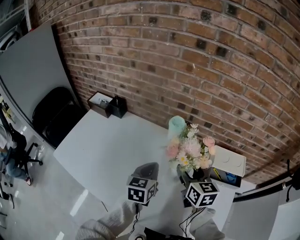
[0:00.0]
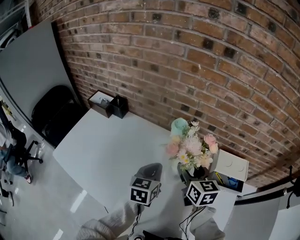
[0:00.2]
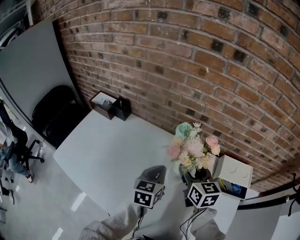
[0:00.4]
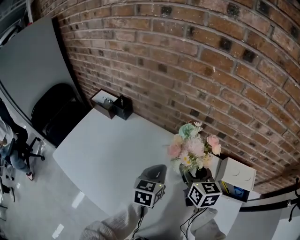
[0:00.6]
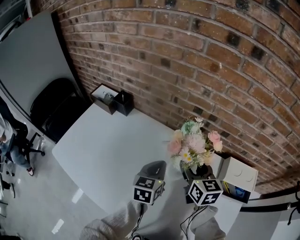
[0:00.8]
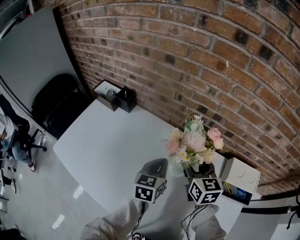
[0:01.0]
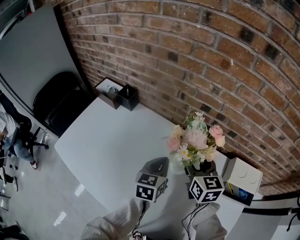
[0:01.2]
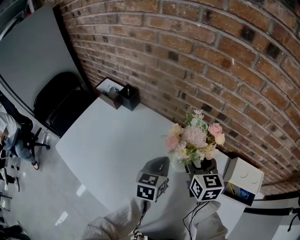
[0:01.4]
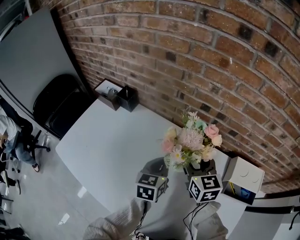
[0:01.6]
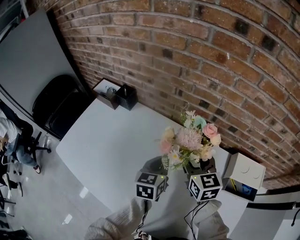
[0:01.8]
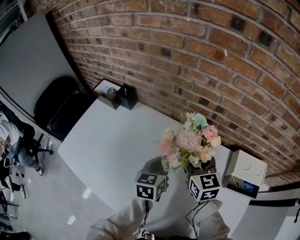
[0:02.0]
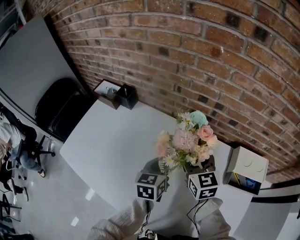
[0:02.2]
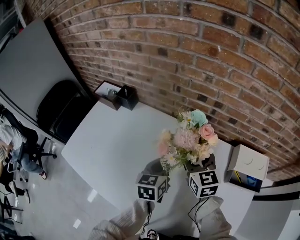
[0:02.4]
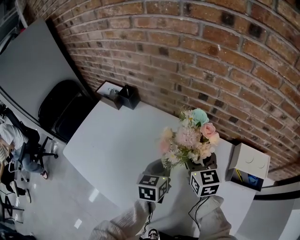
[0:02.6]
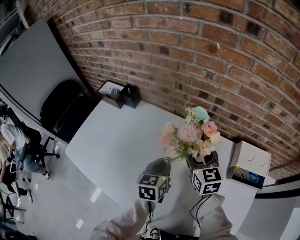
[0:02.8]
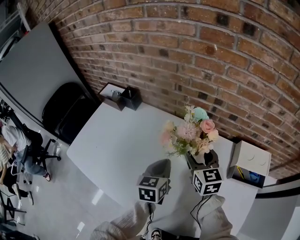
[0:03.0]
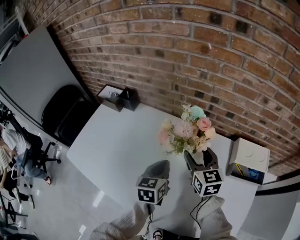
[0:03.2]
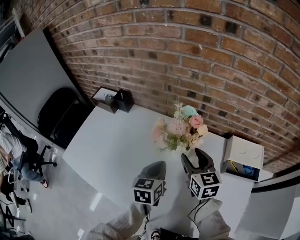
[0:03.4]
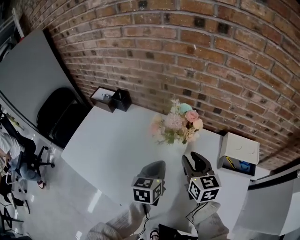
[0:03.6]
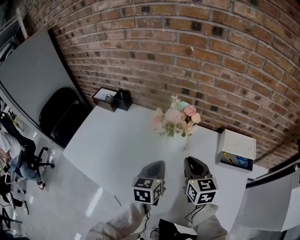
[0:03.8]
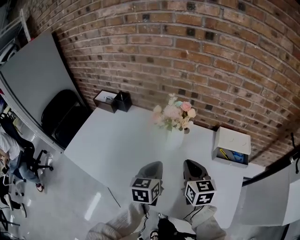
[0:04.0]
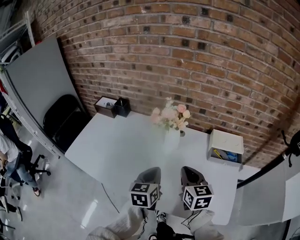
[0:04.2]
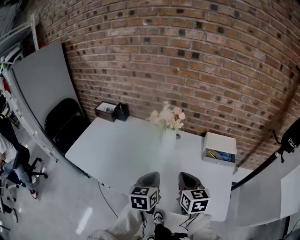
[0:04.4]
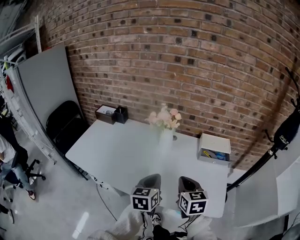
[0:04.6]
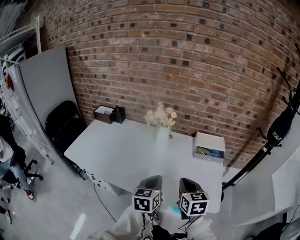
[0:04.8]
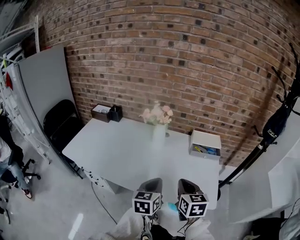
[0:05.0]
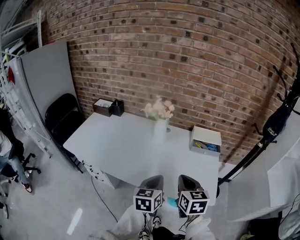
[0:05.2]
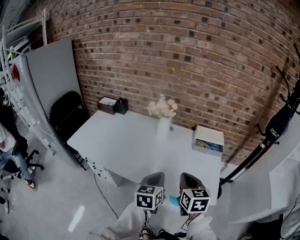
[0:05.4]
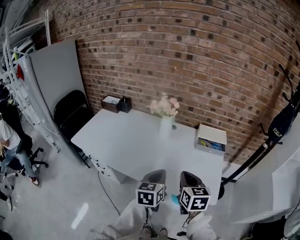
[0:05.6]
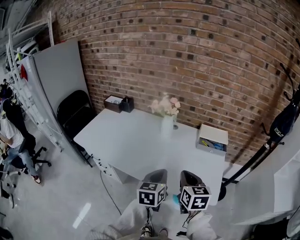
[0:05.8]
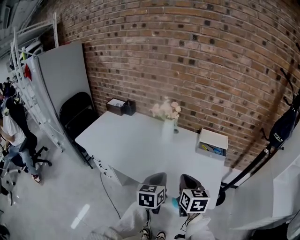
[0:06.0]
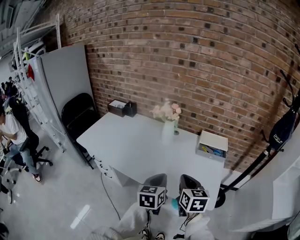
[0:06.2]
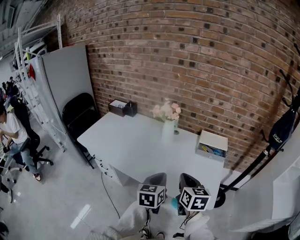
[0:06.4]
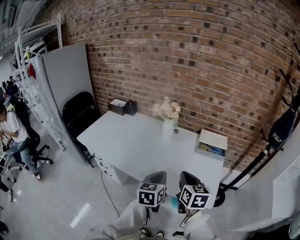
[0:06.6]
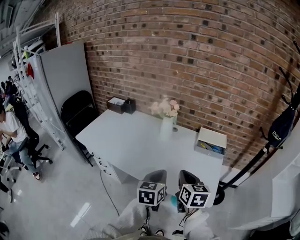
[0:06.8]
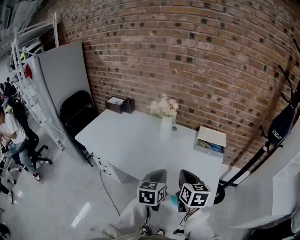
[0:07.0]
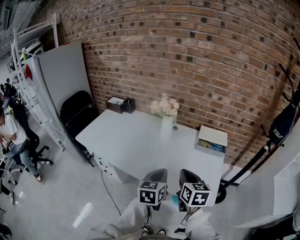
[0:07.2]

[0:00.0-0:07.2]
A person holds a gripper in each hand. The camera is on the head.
0:00.0 to 0:01.4: The right gripper travels forward and to the left by roughly 15 cm. The left gripper heads forward, covering about 10 cm.
0:01.4 to 0:02.8: The grippers move only a little.
0:02.8 to 0:04.4: Both grippers travel together backward, approximately 25 cm. The right gripper closes.
0:04.4 to 0:05.8: Both grippers move backward and to the right, approximately 15 cm.
0:05.8 to 0:07.2: The grippers stay close to where they were, moving slightly.

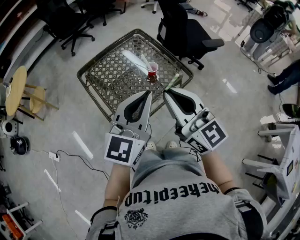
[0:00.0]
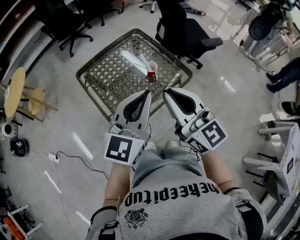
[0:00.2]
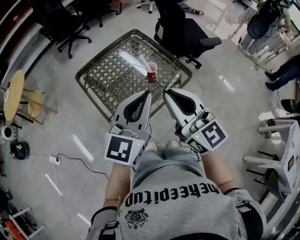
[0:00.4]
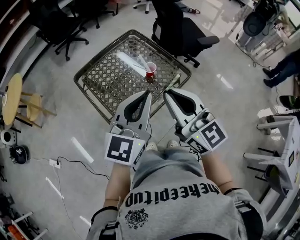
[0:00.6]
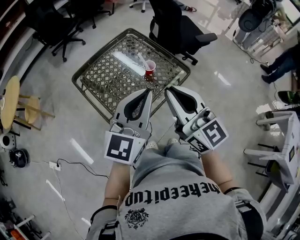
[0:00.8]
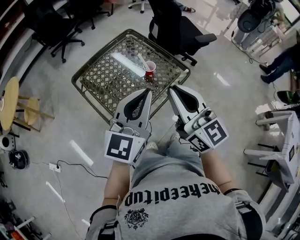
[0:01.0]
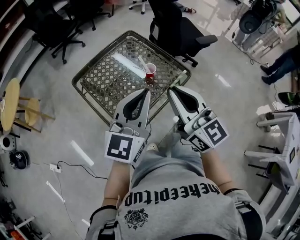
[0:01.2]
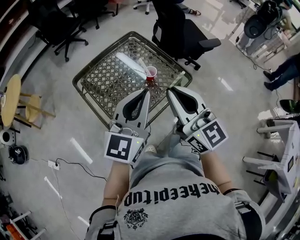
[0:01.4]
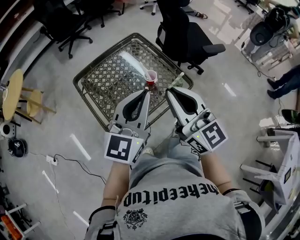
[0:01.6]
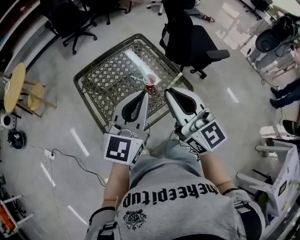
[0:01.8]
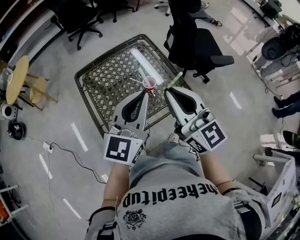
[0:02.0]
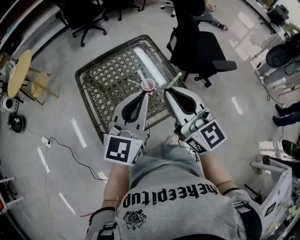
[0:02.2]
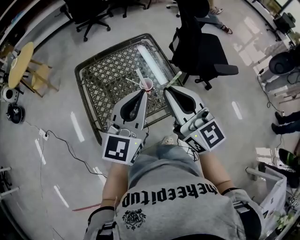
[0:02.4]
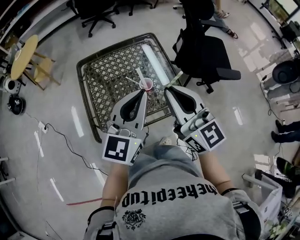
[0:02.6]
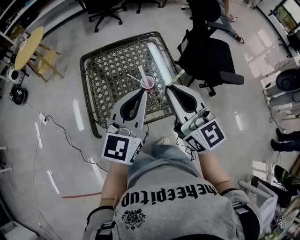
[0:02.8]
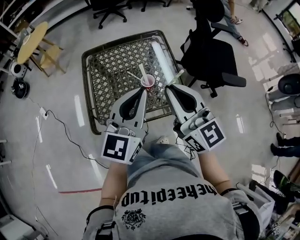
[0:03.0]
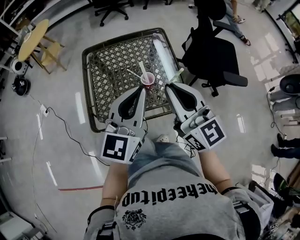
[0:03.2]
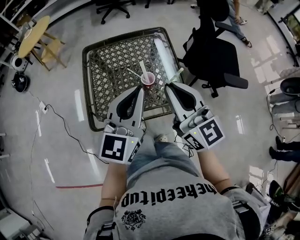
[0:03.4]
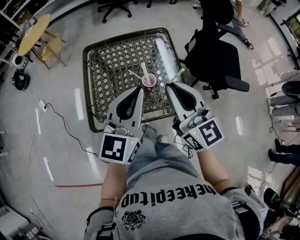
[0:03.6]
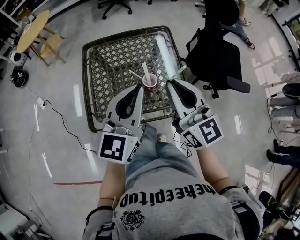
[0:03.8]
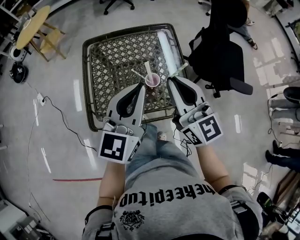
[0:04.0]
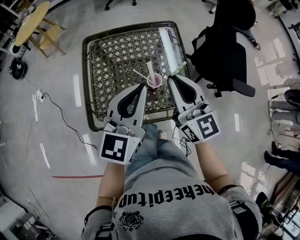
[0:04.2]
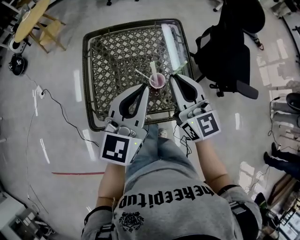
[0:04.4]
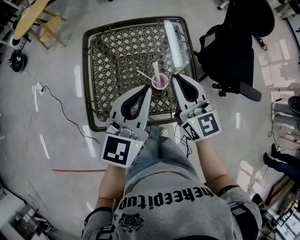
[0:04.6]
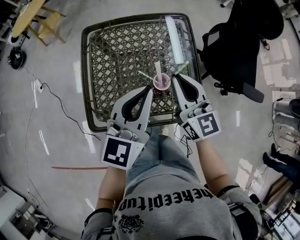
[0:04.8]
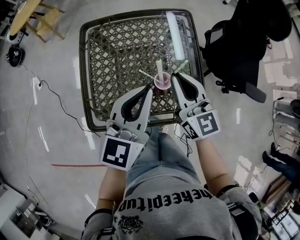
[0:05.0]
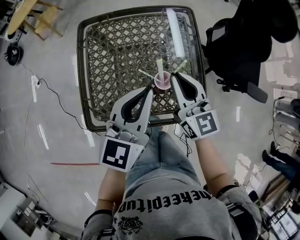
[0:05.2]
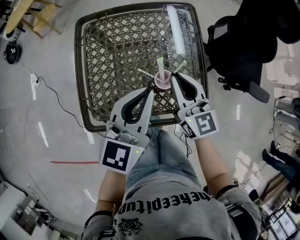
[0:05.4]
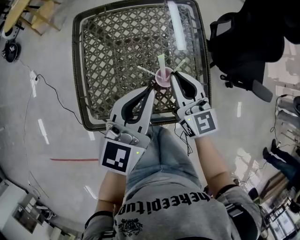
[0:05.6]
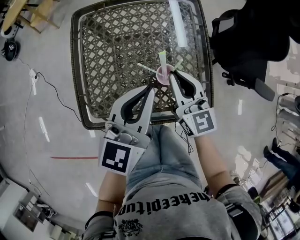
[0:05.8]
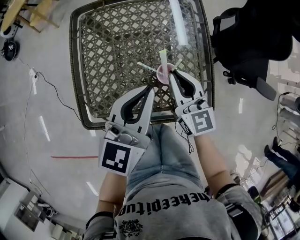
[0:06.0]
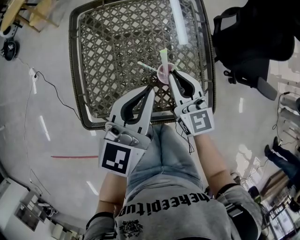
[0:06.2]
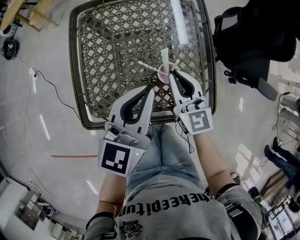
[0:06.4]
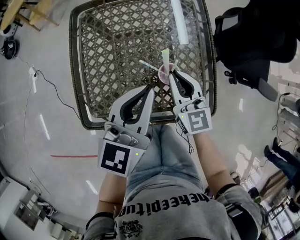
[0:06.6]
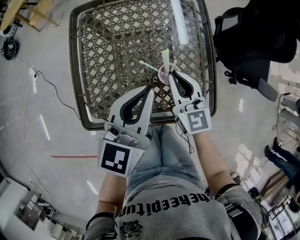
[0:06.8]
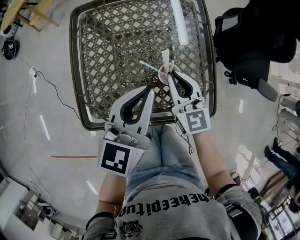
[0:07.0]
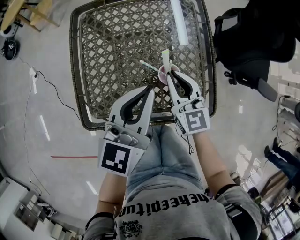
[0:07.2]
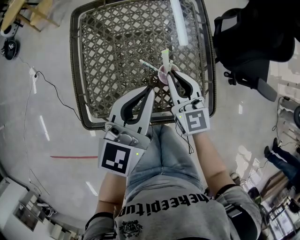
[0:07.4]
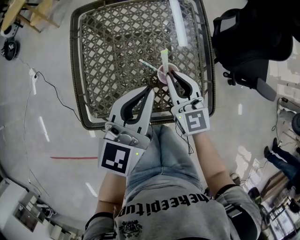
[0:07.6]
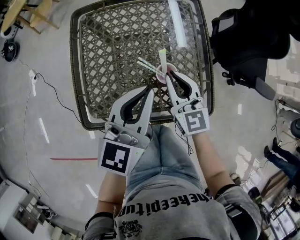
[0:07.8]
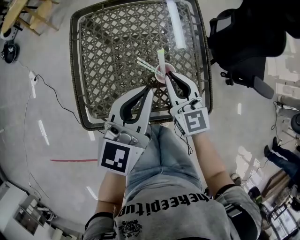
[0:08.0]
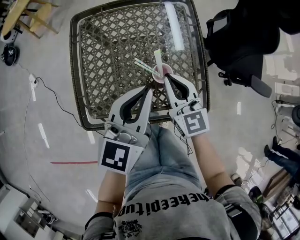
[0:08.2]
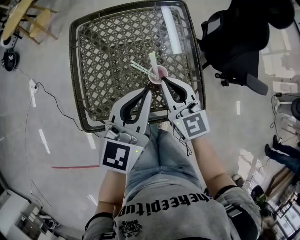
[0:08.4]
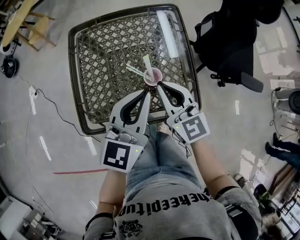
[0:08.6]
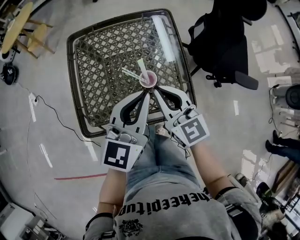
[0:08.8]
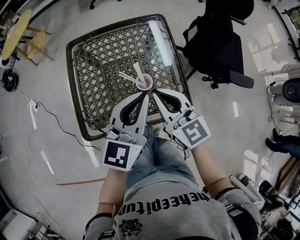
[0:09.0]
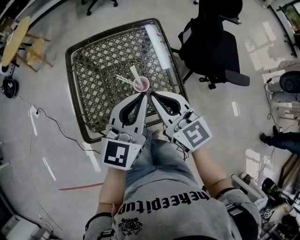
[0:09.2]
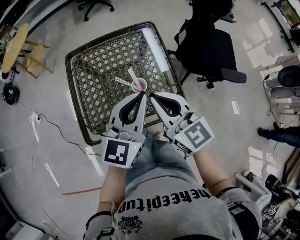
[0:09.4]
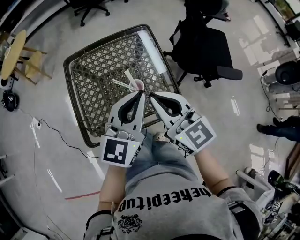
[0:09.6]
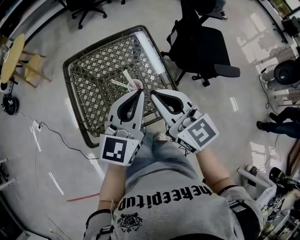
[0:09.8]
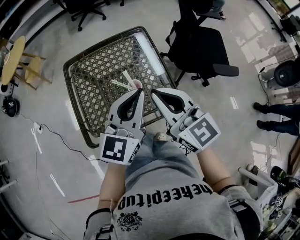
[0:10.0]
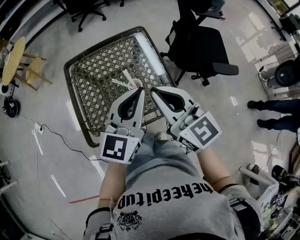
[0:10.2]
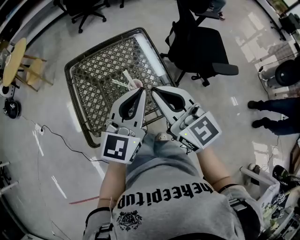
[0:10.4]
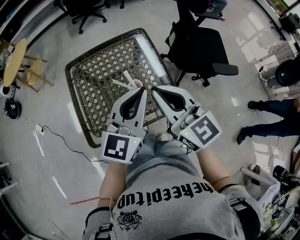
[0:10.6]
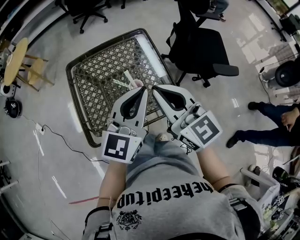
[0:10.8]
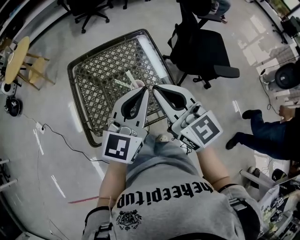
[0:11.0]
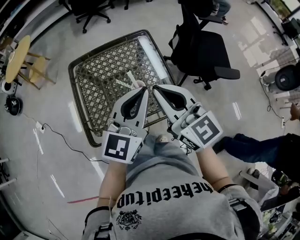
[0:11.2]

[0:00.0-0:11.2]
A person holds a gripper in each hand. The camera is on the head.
0:00.0 to 0:01.6: Both grippers travel together forward, roughly 5 cm.
0:01.6 to 0:03.2: The left gripper ends up about 10 cm from where it was, and turns by about 30 degrees; the right gripper ends up about 10 cm from where it was, and rotates some 20 degrees.
0:03.2 to 0:04.8: The right gripper goes some 20 cm forward and downward, while the left gripper heads forward and downward, covering approximately 10 cm.
0:04.8 to 0:06.4: The left gripper travels downward by some 5 cm; the right gripper travels downward by approximately 15 cm.
0:06.4 to 0:08.0: There are only small adjustments of the grippers.
0:08.0 to 0:09.6: The right gripper shifts roughly 20 cm upward and backward. Meanwhile the left gripper goes some 10 cm upward and to the right.
0:09.6 to 0:11.2: The right gripper travels upward by roughly 5 cm.

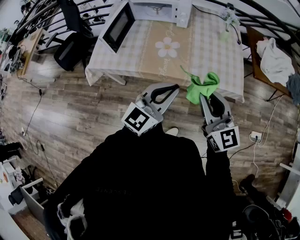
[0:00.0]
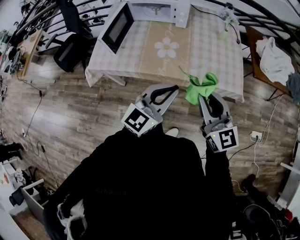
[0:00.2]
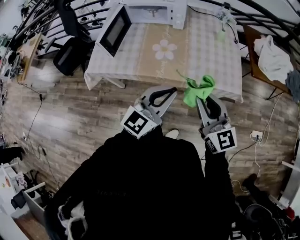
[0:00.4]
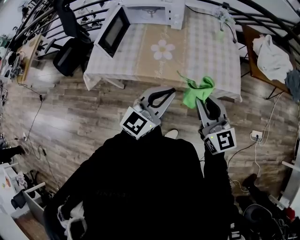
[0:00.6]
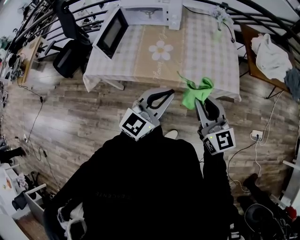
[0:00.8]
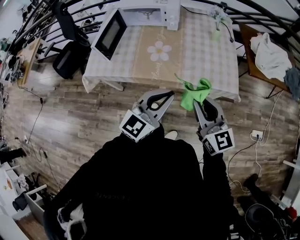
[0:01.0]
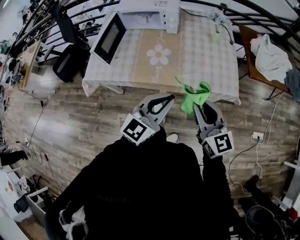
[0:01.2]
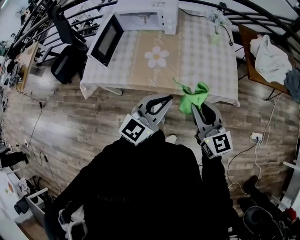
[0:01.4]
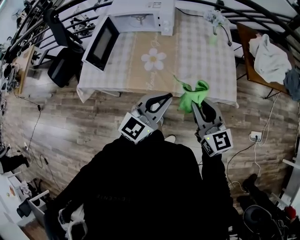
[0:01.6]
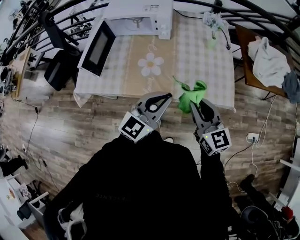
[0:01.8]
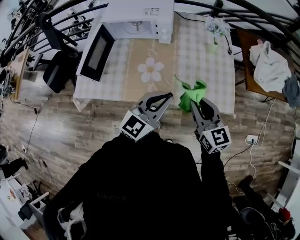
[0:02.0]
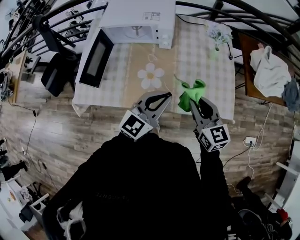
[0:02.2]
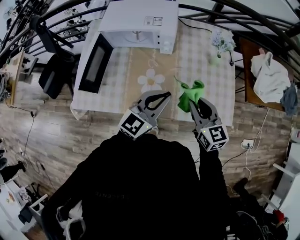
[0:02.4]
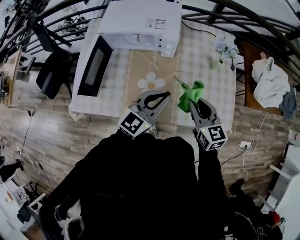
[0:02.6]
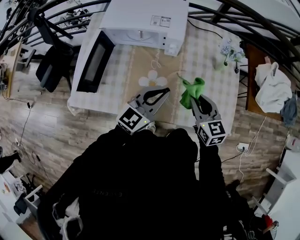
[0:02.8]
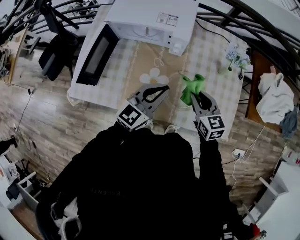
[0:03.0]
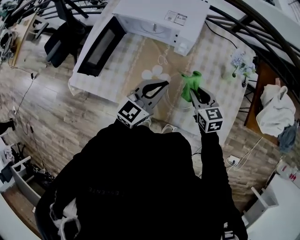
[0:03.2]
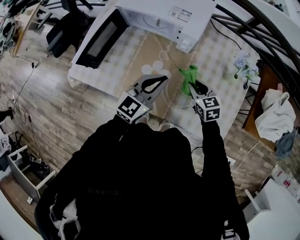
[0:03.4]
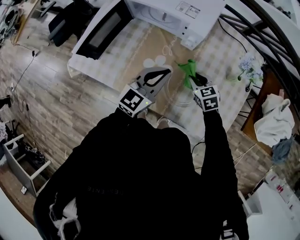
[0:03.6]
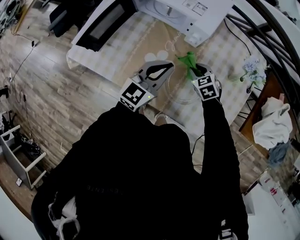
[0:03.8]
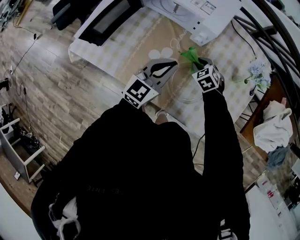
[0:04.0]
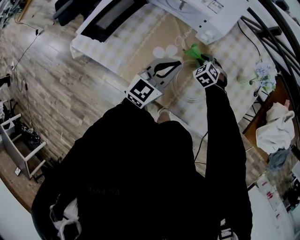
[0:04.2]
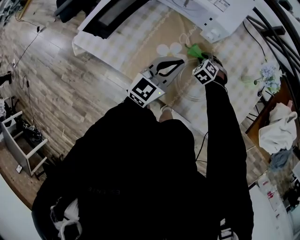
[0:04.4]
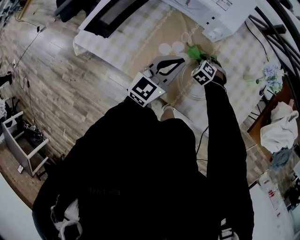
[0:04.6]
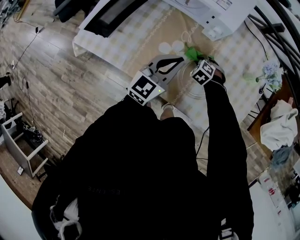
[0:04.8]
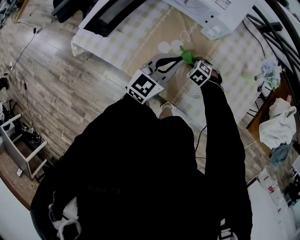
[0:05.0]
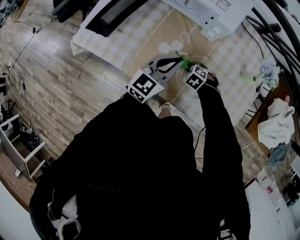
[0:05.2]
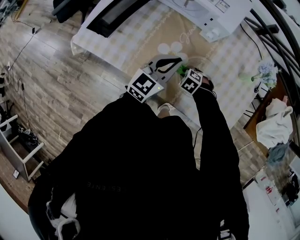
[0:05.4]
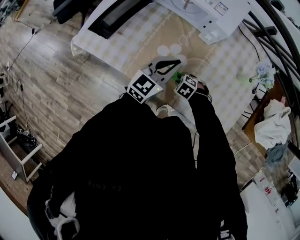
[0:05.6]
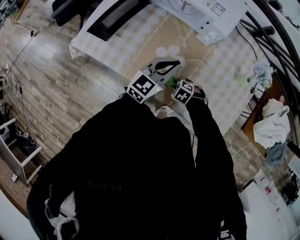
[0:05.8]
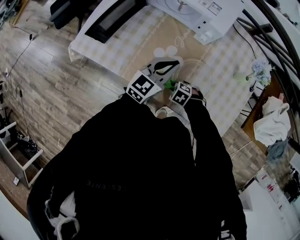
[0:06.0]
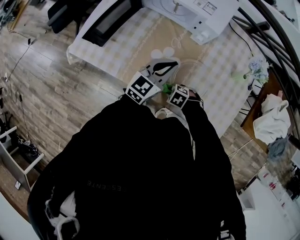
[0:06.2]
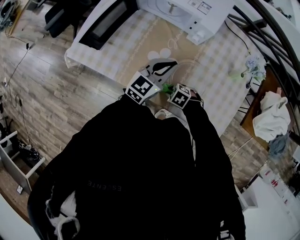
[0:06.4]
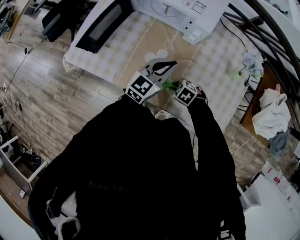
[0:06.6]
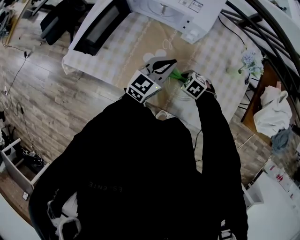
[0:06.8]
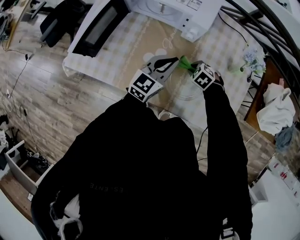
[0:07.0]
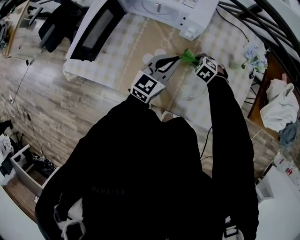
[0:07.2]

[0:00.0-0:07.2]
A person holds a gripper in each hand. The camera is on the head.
0:00.0 to 0:01.4: The left gripper changes place by roughly 5 cm; the right gripper shifts by about 5 cm.
0:01.4 to 0:02.8: The two grippers go roughly 30 cm forward. The right gripper rotates some 20 degrees.
0:02.8 to 0:04.4: The left gripper shifts some 10 cm downward, and swivels about 30 degrees, while the right gripper moves downward and forward, some 30 cm, and rolls counterclockwise, seen from behind, by roughly 60 degrees.
0:04.4 to 0:05.8: The right gripper shifts by about 20 cm, and swivels some 30 degrees.
0:05.8 to 0:07.2: The right gripper ends up approximately 20 cm from where it was; the left gripper ends up roughly 5 cm from where it was.
